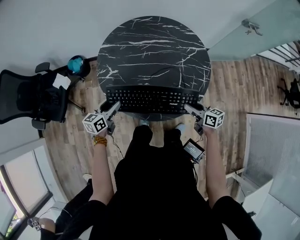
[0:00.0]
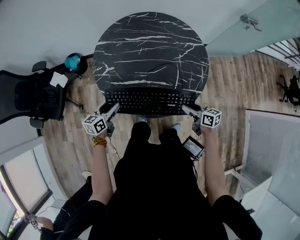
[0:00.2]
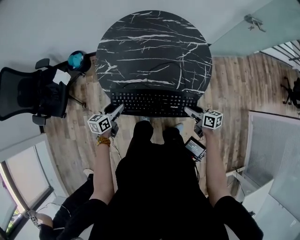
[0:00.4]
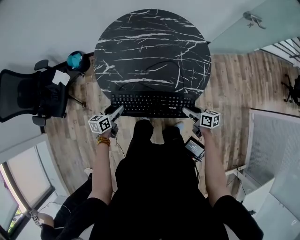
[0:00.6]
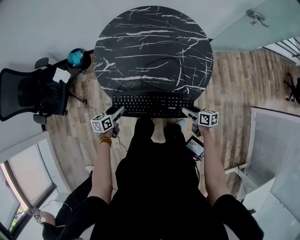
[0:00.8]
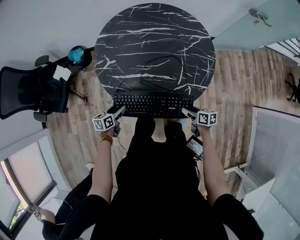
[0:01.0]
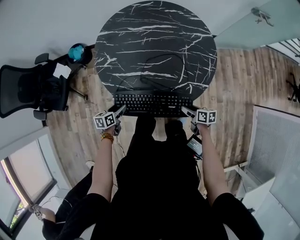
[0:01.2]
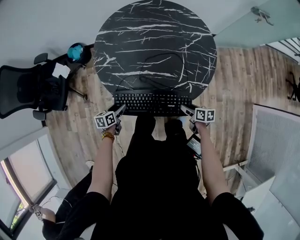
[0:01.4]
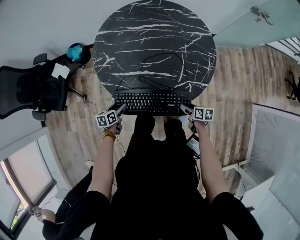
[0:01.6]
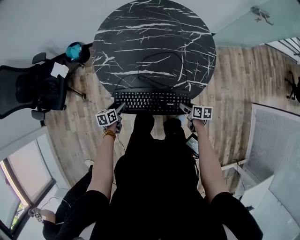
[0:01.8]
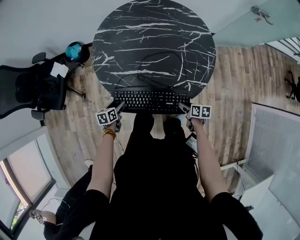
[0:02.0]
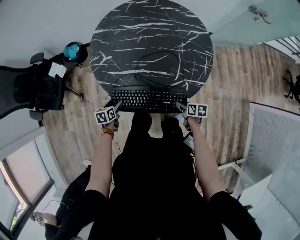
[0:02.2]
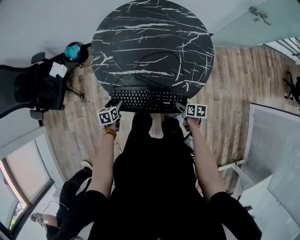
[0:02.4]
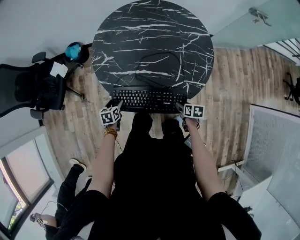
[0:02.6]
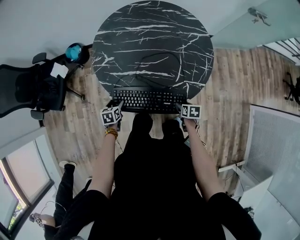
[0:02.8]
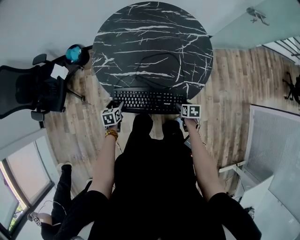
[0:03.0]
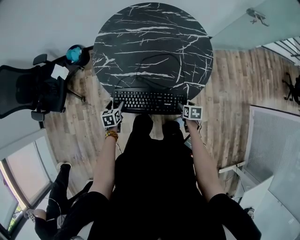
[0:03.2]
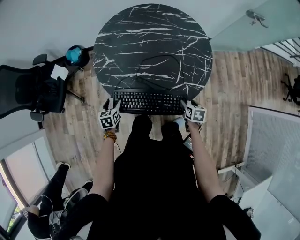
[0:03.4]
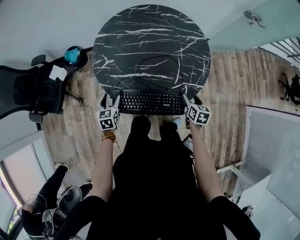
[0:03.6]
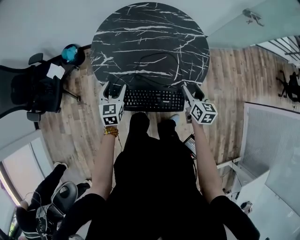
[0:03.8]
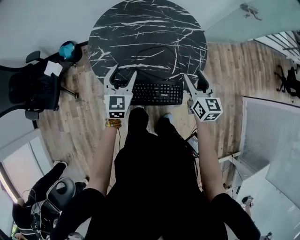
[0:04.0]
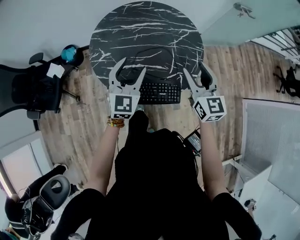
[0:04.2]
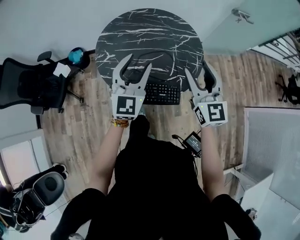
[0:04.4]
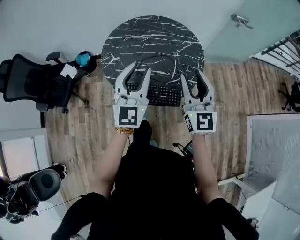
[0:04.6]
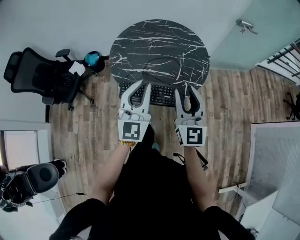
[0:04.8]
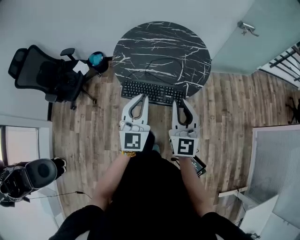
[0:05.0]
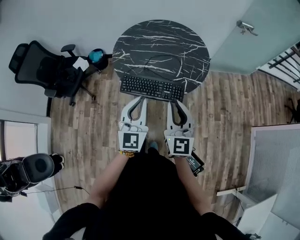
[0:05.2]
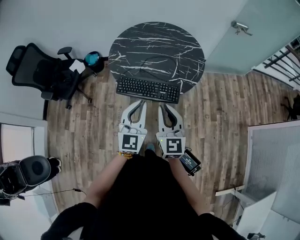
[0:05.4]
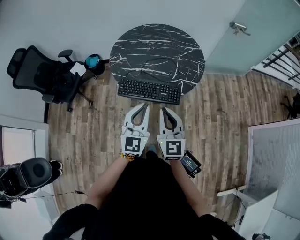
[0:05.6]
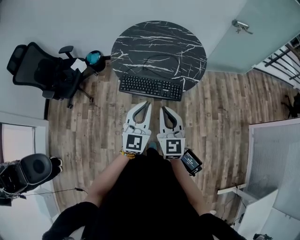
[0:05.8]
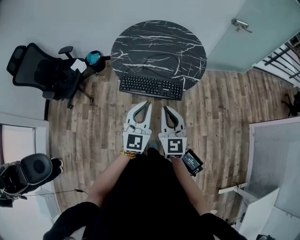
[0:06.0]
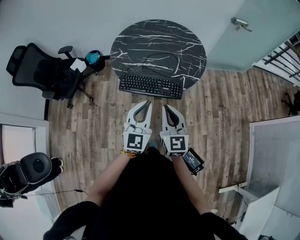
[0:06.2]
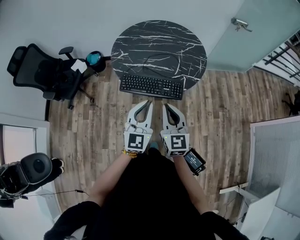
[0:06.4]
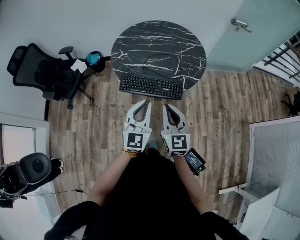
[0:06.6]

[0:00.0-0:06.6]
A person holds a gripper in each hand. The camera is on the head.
0:00.0 to 0:01.6: The grippers both shift downward and backward by some 20 cm. The right gripper changes its angle by approximately 30 degrees. Meanwhile the left gripper turns by about 30 degrees.
0:01.6 to 0:03.2: The right gripper changes its angle by roughly 30 degrees.
0:03.2 to 0:05.0: The right gripper heads upward, covering some 40 cm, points its fingers about 70 degrees further upward, and closes. The left gripper is displaced upward, to the right and backward by some 50 cm, tips its fingers upward by some 60 degrees, and closes its fingers.
0:05.0 to 0:06.6: The left gripper shifts approximately 5 cm backward, while the right gripper is displaced downward and backward by approximately 10 cm.

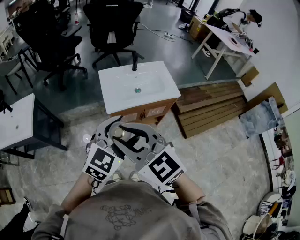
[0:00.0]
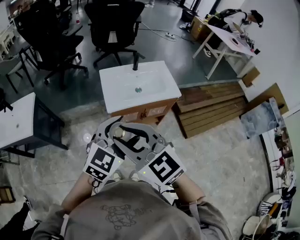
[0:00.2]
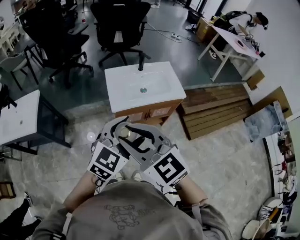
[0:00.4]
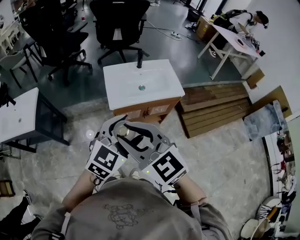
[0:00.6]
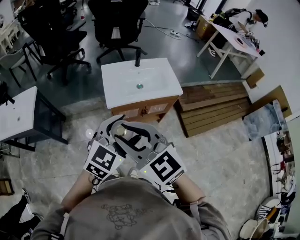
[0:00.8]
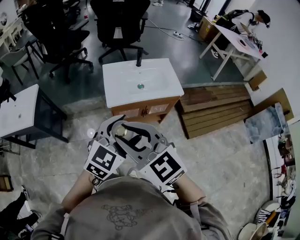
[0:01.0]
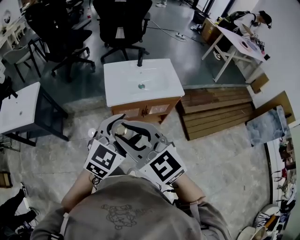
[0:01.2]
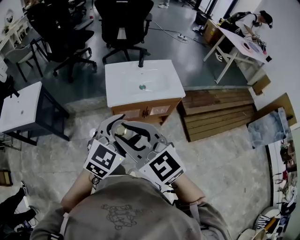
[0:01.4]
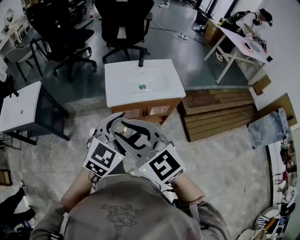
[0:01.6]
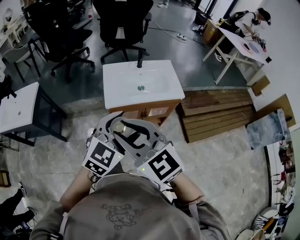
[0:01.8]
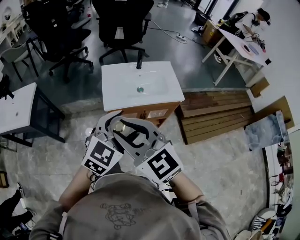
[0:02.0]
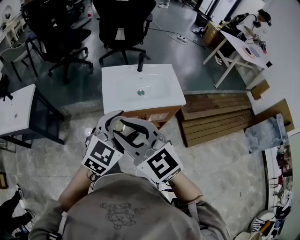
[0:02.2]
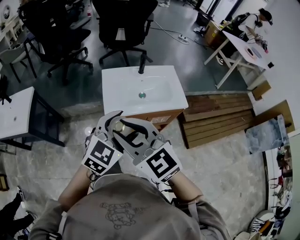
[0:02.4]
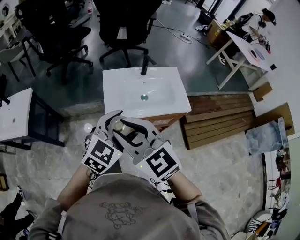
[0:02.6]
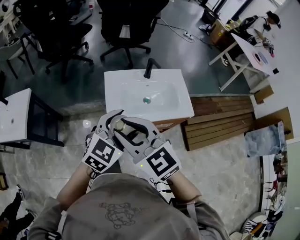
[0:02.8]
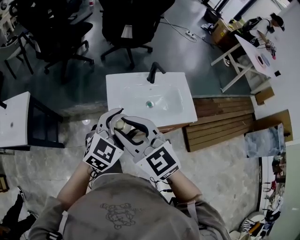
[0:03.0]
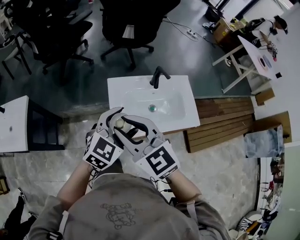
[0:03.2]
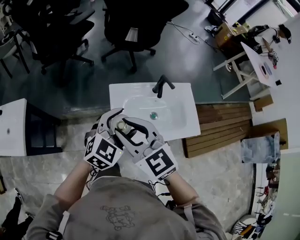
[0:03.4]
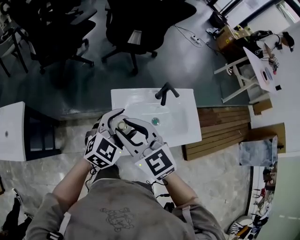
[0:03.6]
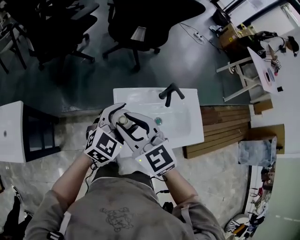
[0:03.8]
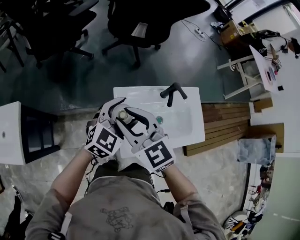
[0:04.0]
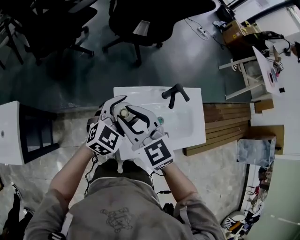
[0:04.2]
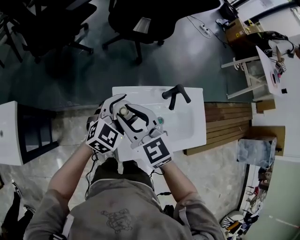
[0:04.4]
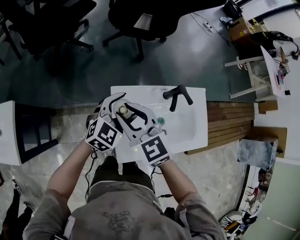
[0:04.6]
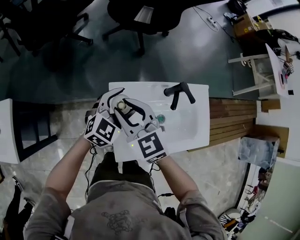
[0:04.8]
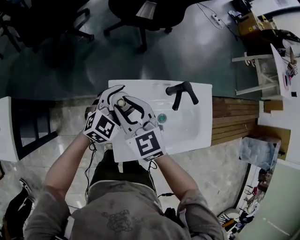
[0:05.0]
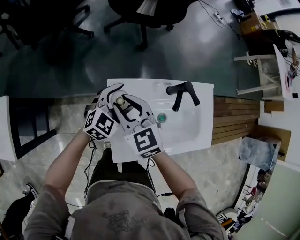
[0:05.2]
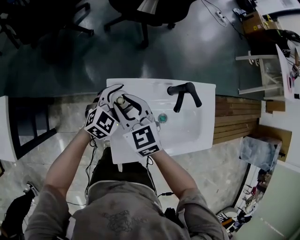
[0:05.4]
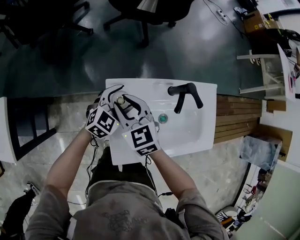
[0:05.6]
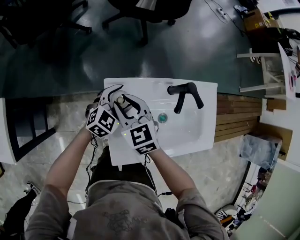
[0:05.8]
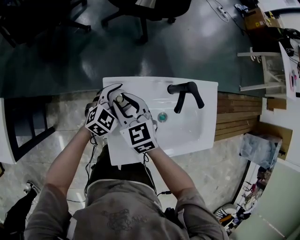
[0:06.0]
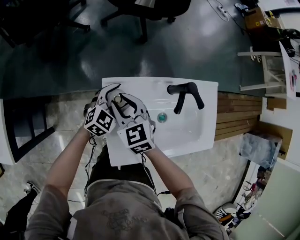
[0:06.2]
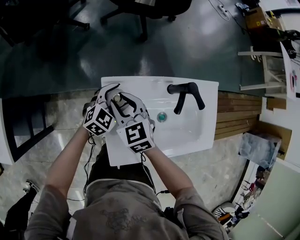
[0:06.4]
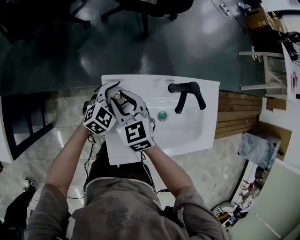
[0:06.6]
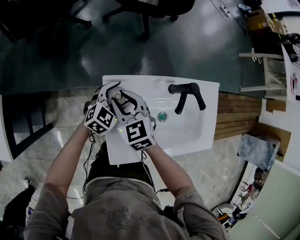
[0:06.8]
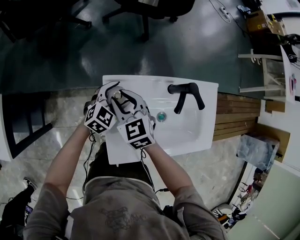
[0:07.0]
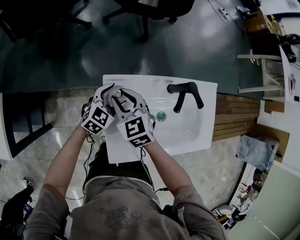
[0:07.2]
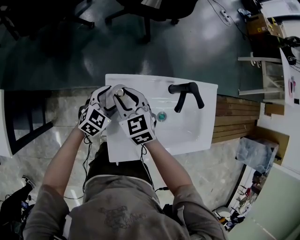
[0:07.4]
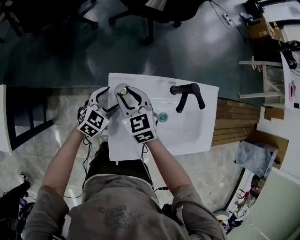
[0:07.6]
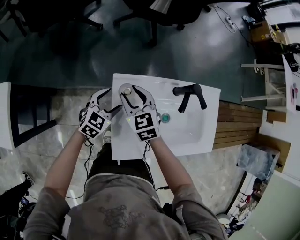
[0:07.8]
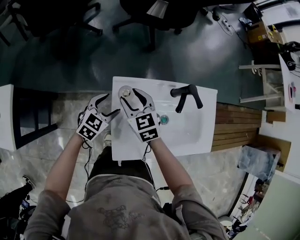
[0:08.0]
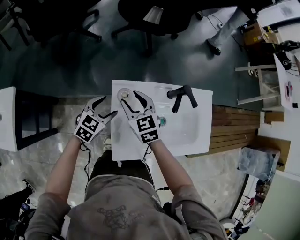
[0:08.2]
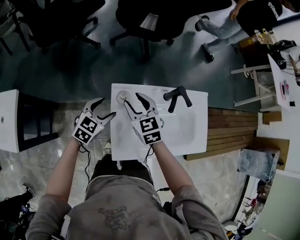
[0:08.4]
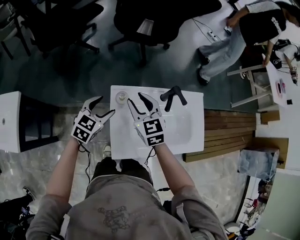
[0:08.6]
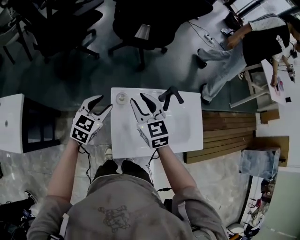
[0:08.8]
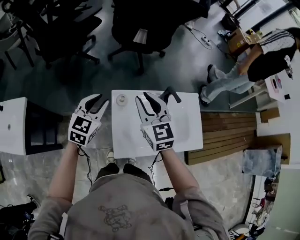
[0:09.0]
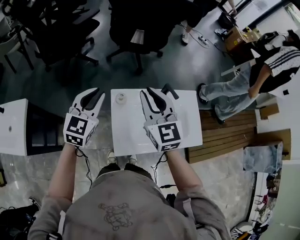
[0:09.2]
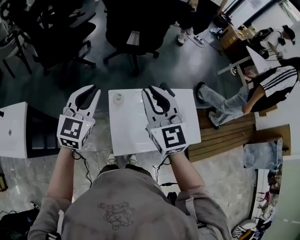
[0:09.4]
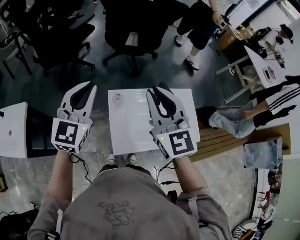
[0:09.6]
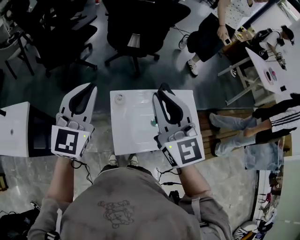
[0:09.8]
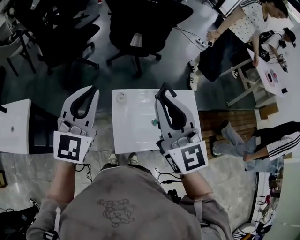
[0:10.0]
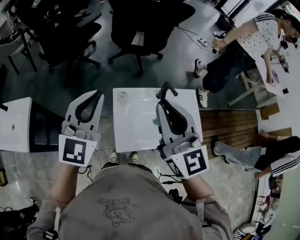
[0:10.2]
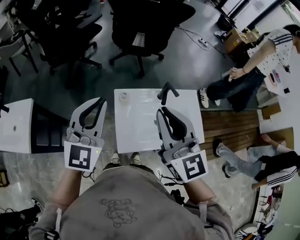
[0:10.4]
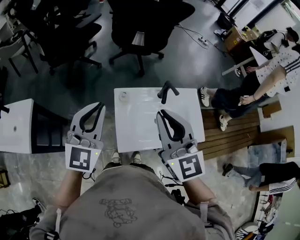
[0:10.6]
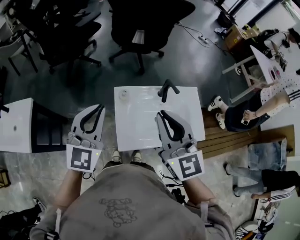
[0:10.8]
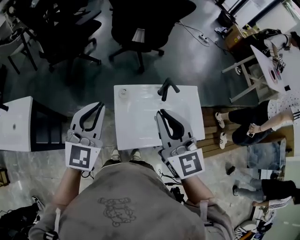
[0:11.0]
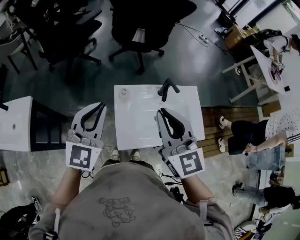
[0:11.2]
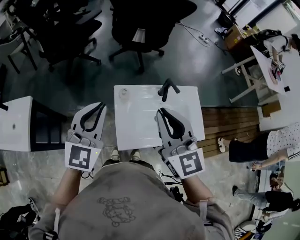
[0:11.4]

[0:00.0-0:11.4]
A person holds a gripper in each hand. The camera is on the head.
0:00.0 to 0:01.4: The right gripper travels to the right by roughly 5 cm. The left gripper ends up roughly 5 cm from where it was.
0:01.4 to 0:02.8: Both grippers move forward, some 25 cm.
0:02.8 to 0:04.2: Both grippers travel together forward, about 30 cm.
0:04.2 to 0:05.6: The two grippers go approximately 20 cm downward and forward.
0:05.6 to 0:07.2: The left gripper travels downward by some 5 cm.
0:07.2 to 0:08.6: The left gripper travels upward, to the left and backward by about 15 cm. Meanwhile the right gripper shifts approximately 10 cm upward.
0:08.6 to 0:10.0: The left gripper is displaced upward by roughly 30 cm, tips its fingers upward by roughly 30 degrees, and closes. Meanwhile the right gripper goes roughly 30 cm upward and backward, swivels approximately 30 degrees, and closes its fingers.
0:10.0 to 0:11.4: Both grippers move downward, some 5 cm.

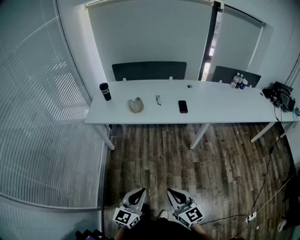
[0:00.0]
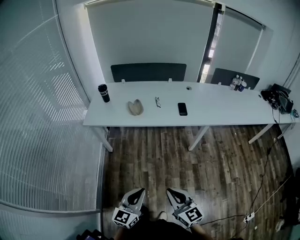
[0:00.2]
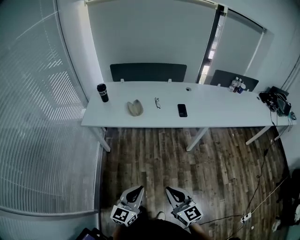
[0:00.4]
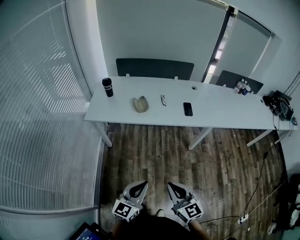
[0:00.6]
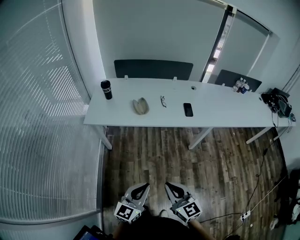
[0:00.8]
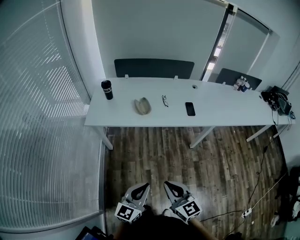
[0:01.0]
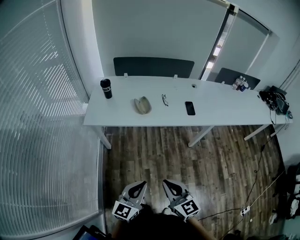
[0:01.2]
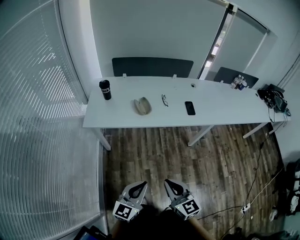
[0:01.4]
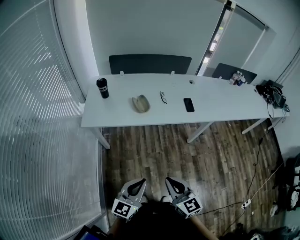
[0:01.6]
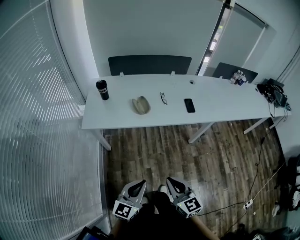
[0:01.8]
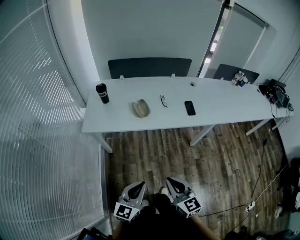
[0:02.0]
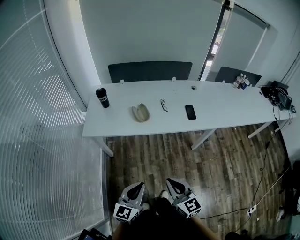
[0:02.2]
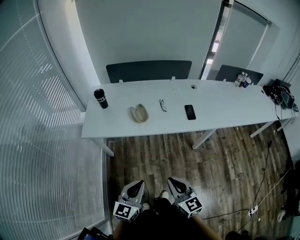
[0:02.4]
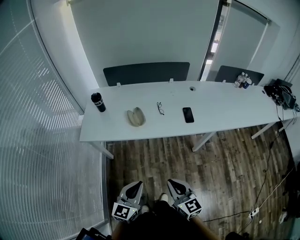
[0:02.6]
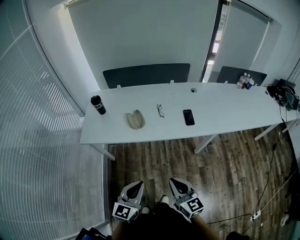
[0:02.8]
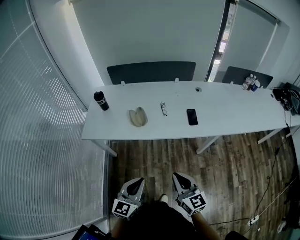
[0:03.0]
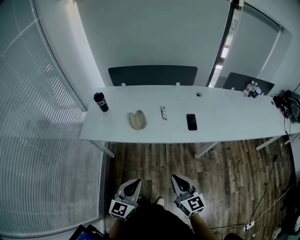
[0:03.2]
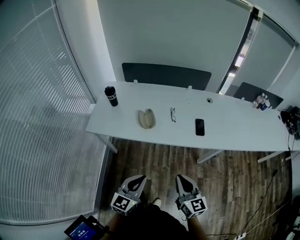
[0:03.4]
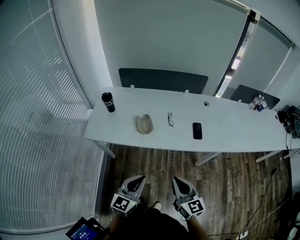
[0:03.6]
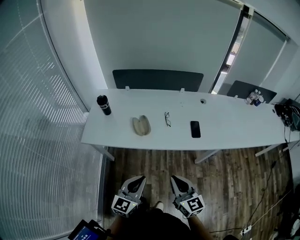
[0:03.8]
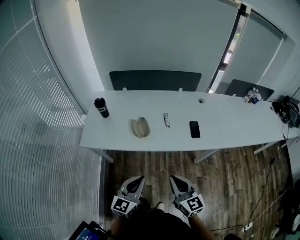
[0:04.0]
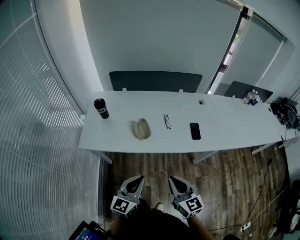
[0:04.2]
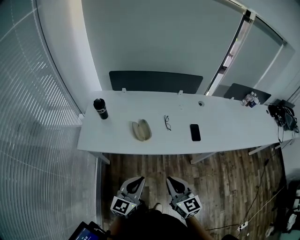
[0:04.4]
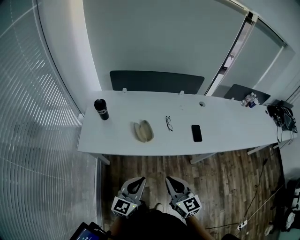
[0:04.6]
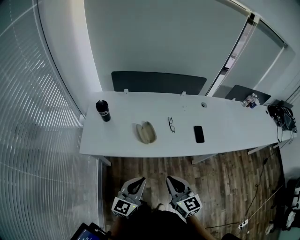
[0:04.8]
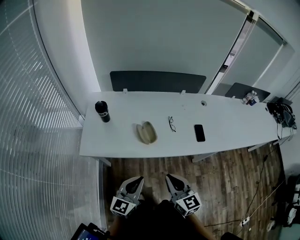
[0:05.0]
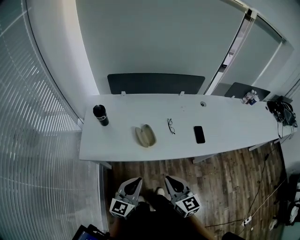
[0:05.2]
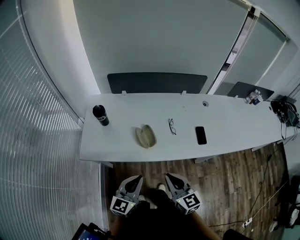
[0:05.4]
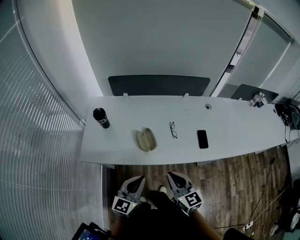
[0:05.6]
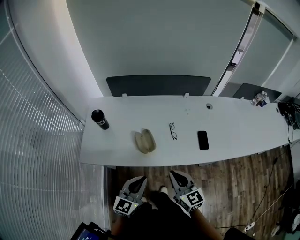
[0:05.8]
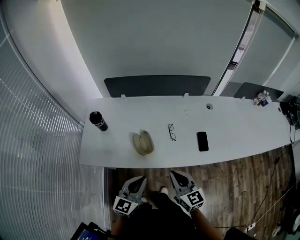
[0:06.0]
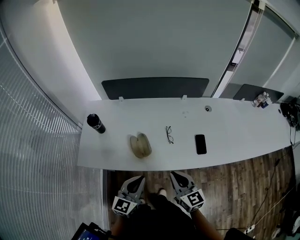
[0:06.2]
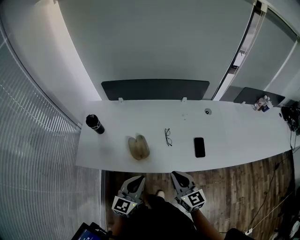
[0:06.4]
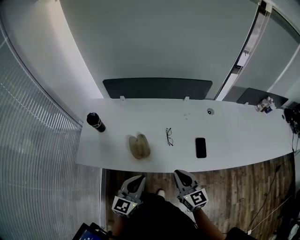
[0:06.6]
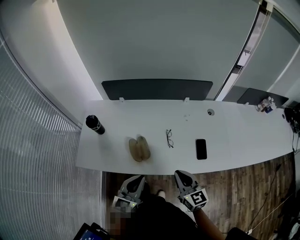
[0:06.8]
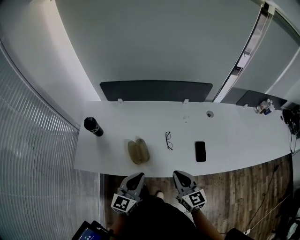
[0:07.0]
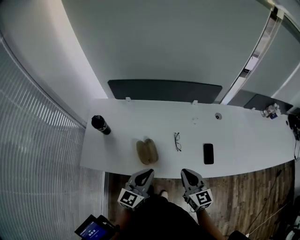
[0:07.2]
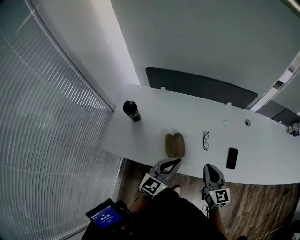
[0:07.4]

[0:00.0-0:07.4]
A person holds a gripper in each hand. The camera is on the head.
0:00.0 to 0:01.4: Both grippers travel together to the left and forward, about 20 cm.
0:01.4 to 0:03.0: The two grippers go some 20 cm forward and to the right.
0:03.0 to 0:04.4: The grippers both shift forward and to the left by about 15 cm.
0:04.4 to 0:06.0: The grippers both shift forward by approximately 15 cm.
0:06.0 to 0:07.4: The two grippers go approximately 15 cm forward.
